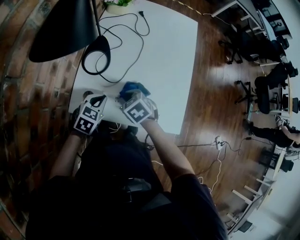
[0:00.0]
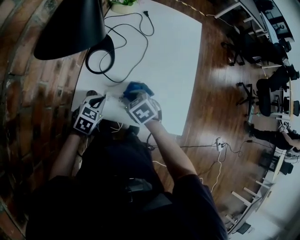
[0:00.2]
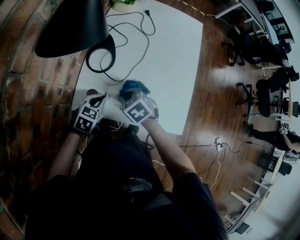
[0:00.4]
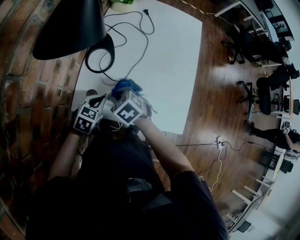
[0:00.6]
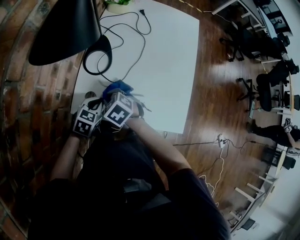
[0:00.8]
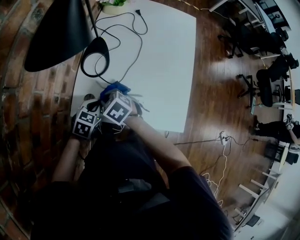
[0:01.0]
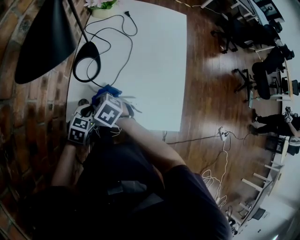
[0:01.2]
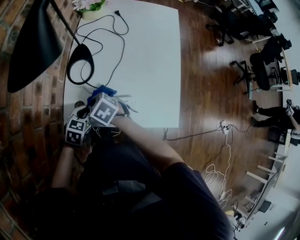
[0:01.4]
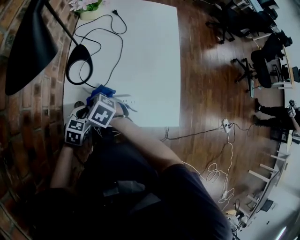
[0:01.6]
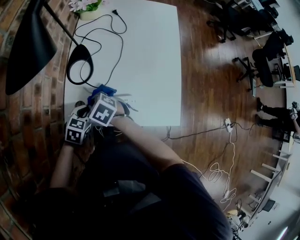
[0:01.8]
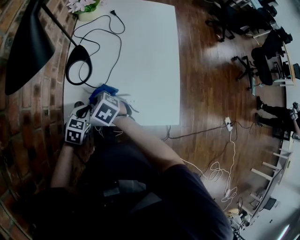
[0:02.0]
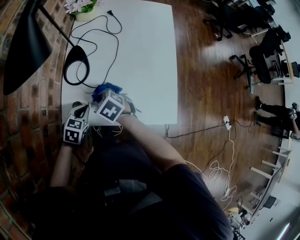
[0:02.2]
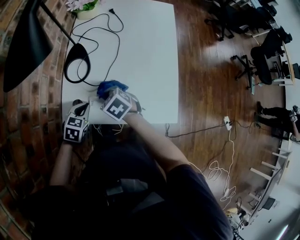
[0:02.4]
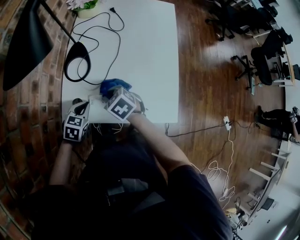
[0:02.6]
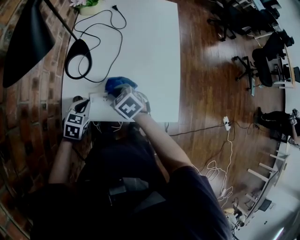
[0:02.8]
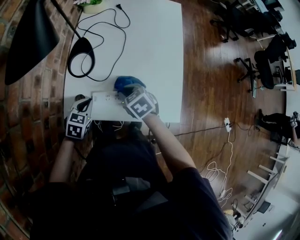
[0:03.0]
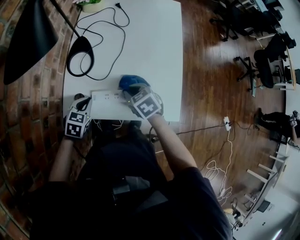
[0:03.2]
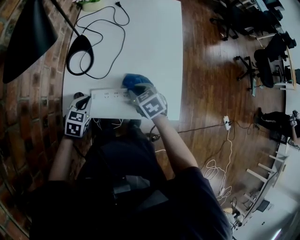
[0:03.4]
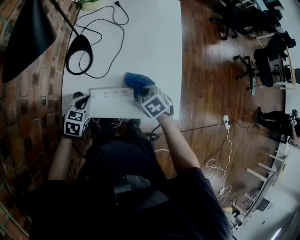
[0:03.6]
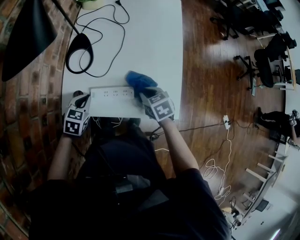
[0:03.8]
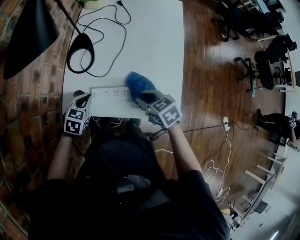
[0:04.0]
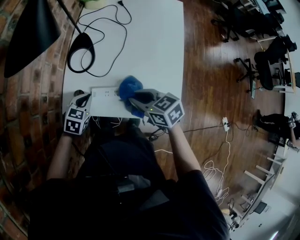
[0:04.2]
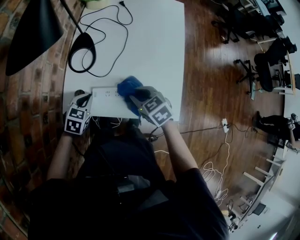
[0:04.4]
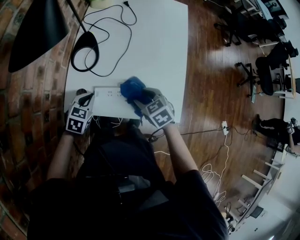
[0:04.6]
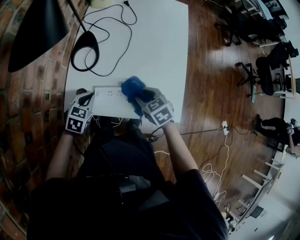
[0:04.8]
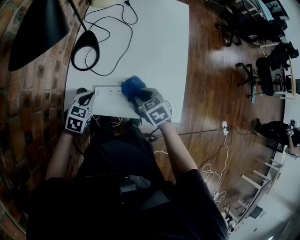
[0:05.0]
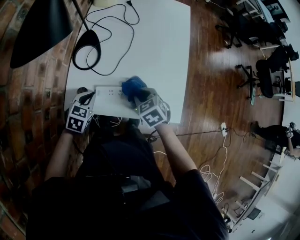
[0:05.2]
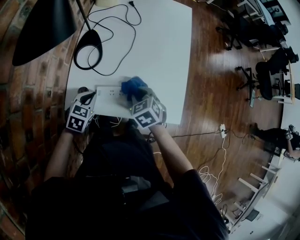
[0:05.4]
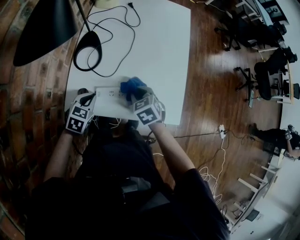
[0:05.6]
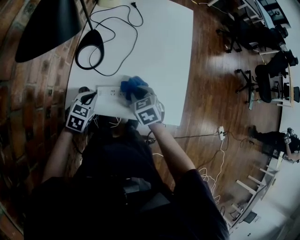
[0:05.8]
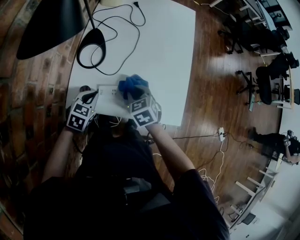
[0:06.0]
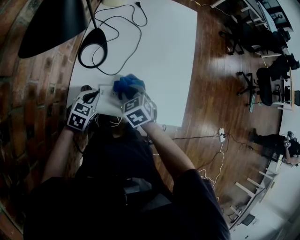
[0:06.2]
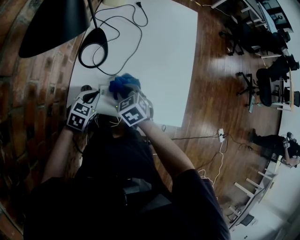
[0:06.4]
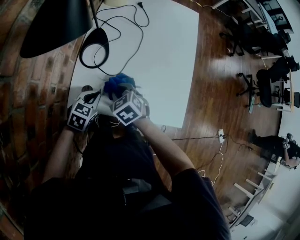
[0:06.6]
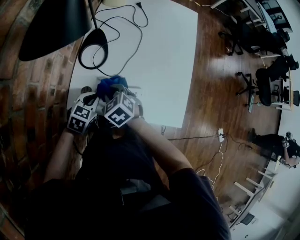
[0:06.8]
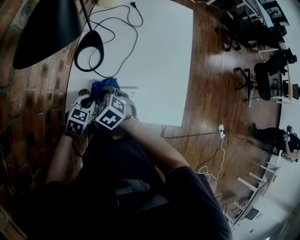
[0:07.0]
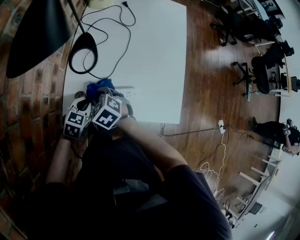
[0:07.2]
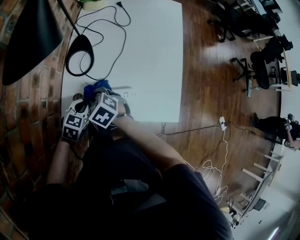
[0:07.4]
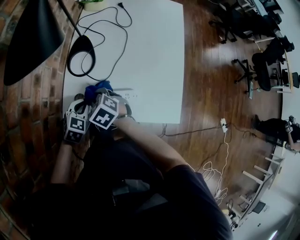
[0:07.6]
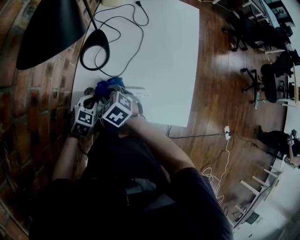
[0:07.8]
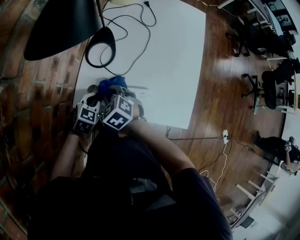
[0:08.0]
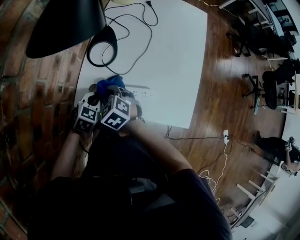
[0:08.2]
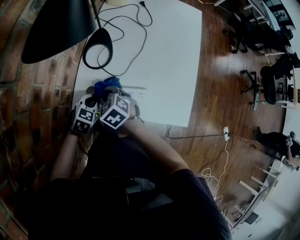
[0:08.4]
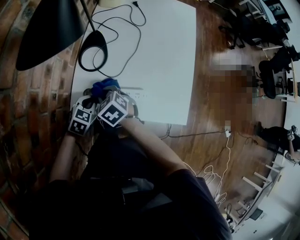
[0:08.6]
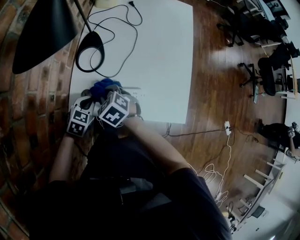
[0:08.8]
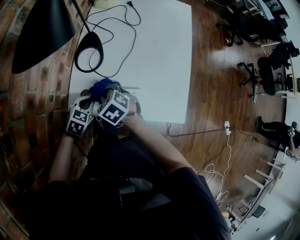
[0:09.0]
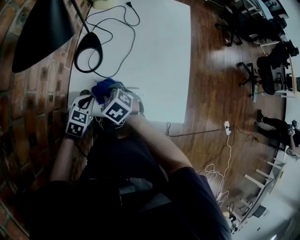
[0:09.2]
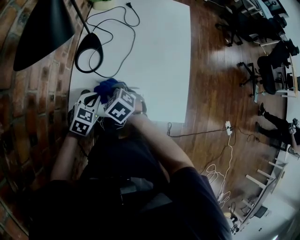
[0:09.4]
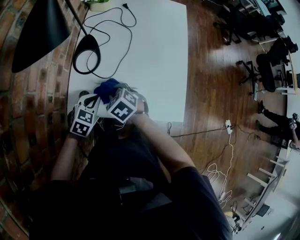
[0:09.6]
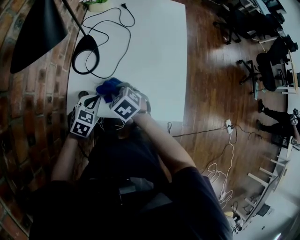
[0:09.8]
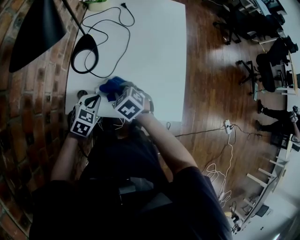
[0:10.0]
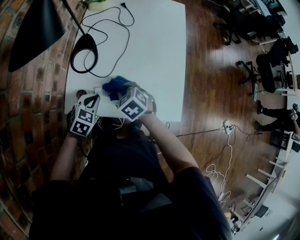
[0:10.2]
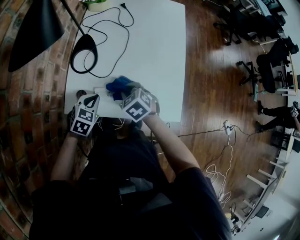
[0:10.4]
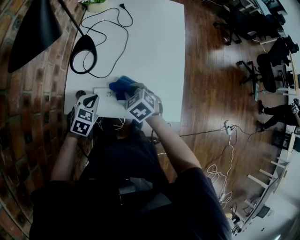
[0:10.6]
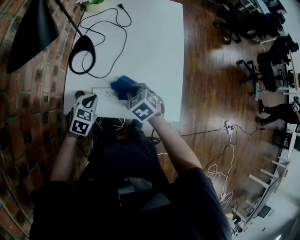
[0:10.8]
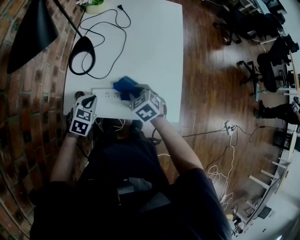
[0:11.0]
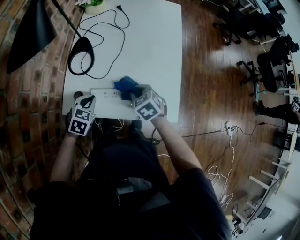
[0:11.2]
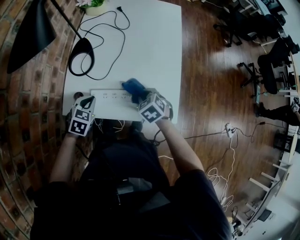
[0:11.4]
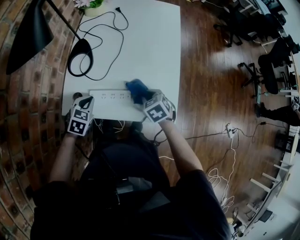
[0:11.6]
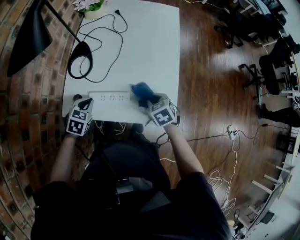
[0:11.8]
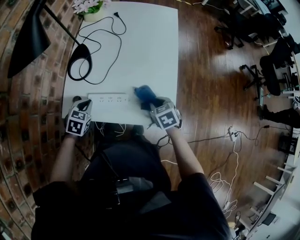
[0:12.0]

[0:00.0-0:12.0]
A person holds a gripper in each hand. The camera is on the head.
0:00.0 to 0:01.6: The right gripper heads to the left, covering some 10 cm.
0:01.6 to 0:03.0: The right gripper is displaced to the right by roughly 15 cm.
0:03.0 to 0:04.4: The right gripper goes upward and returns, roughly 5 cm each way.
0:04.4 to 0:06.0: The right gripper opens, then closes once more.
0:06.0 to 0:07.6: The right gripper heads to the left, covering roughly 15 cm, and turns by roughly 20 degrees.
0:07.6 to 0:09.0: There are only small adjustments of the grippers.
0:09.0 to 0:10.4: The left gripper changes place by some 5 cm; the right gripper heads to the right, covering roughly 10 cm.
0:10.4 to 0:12.0: The right gripper moves to the right, some 15 cm.

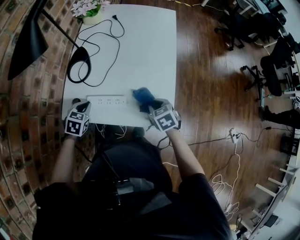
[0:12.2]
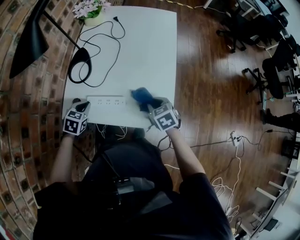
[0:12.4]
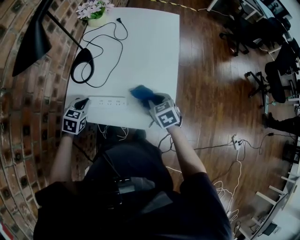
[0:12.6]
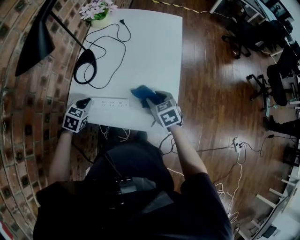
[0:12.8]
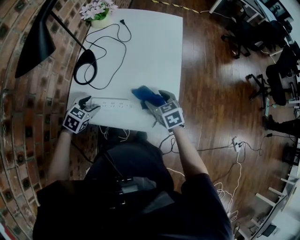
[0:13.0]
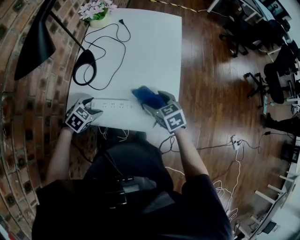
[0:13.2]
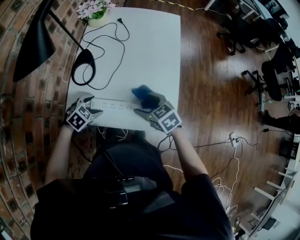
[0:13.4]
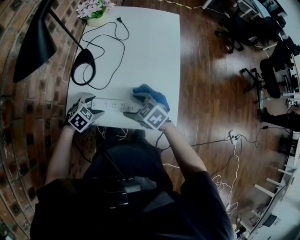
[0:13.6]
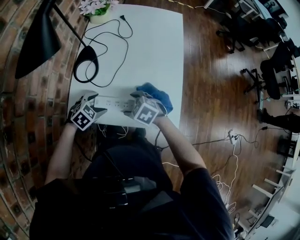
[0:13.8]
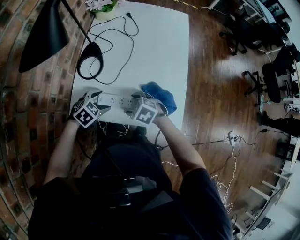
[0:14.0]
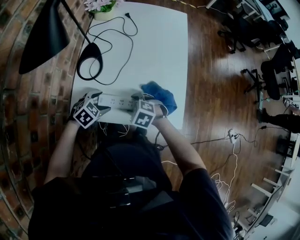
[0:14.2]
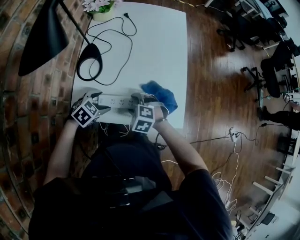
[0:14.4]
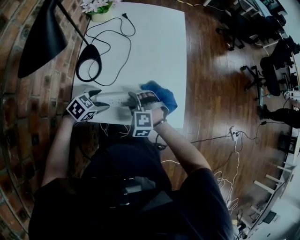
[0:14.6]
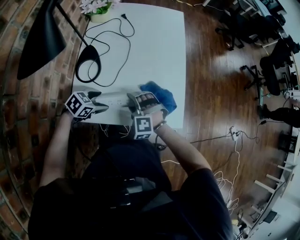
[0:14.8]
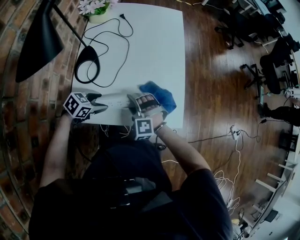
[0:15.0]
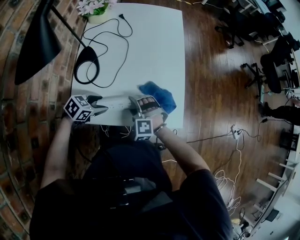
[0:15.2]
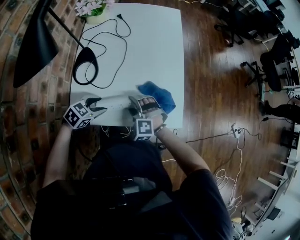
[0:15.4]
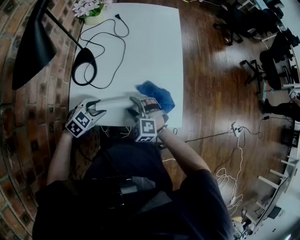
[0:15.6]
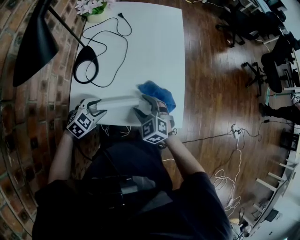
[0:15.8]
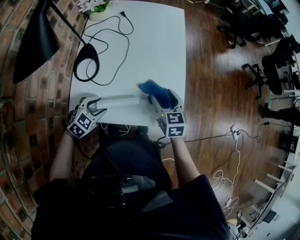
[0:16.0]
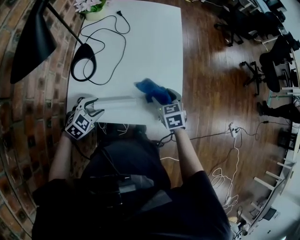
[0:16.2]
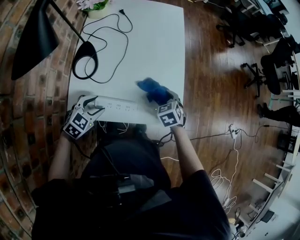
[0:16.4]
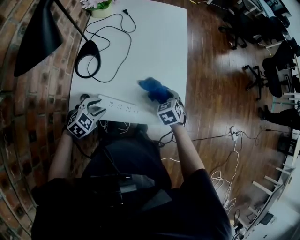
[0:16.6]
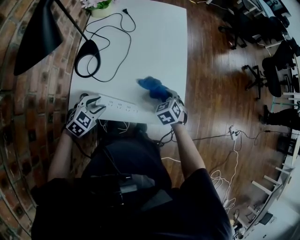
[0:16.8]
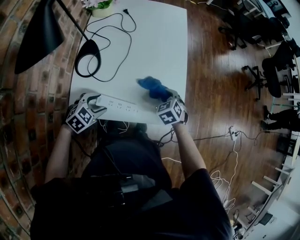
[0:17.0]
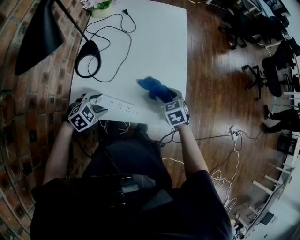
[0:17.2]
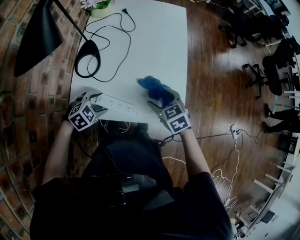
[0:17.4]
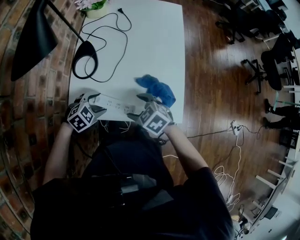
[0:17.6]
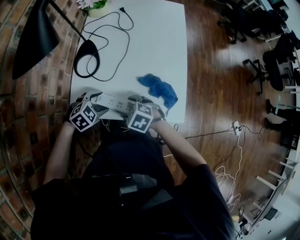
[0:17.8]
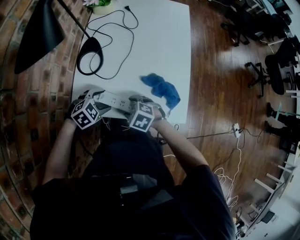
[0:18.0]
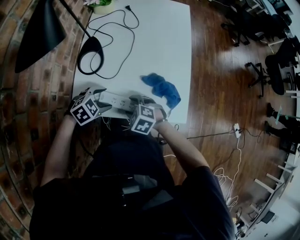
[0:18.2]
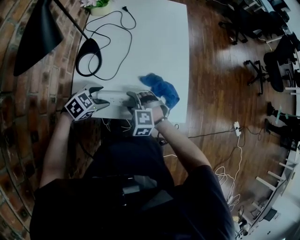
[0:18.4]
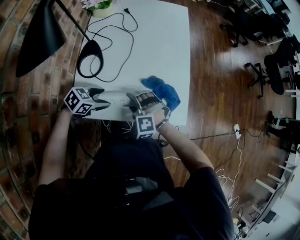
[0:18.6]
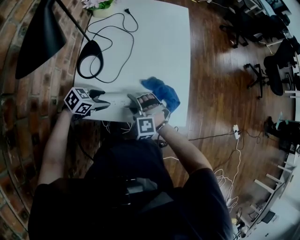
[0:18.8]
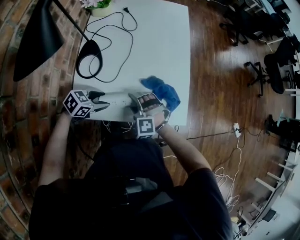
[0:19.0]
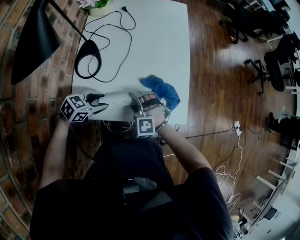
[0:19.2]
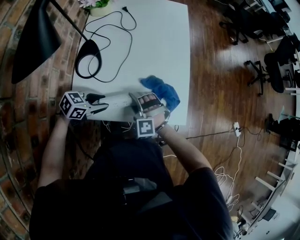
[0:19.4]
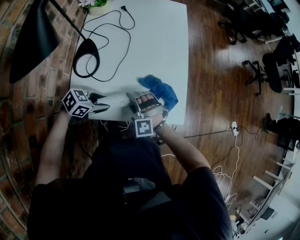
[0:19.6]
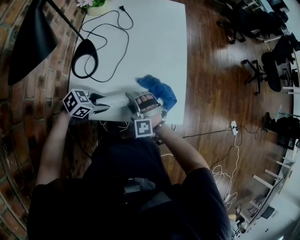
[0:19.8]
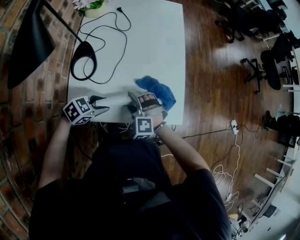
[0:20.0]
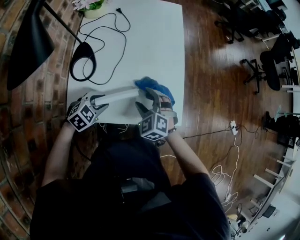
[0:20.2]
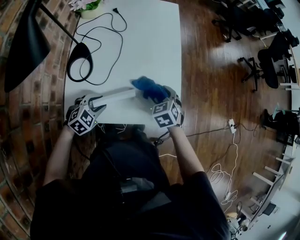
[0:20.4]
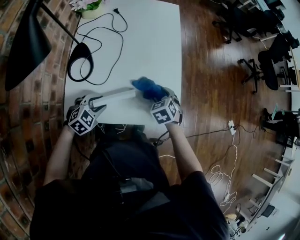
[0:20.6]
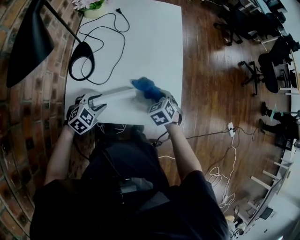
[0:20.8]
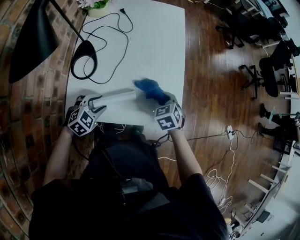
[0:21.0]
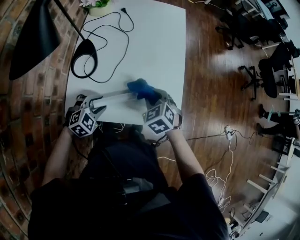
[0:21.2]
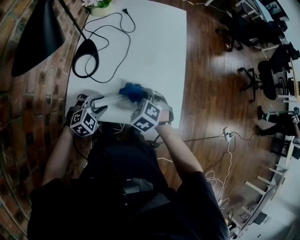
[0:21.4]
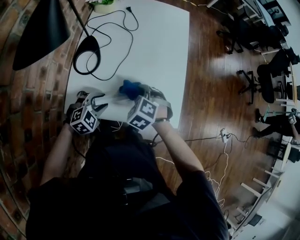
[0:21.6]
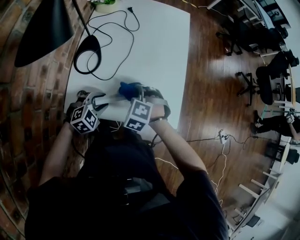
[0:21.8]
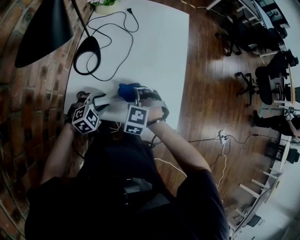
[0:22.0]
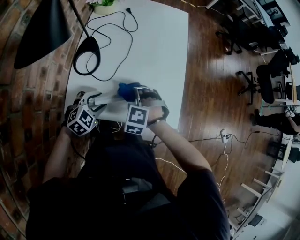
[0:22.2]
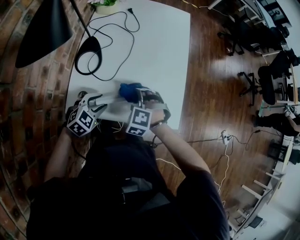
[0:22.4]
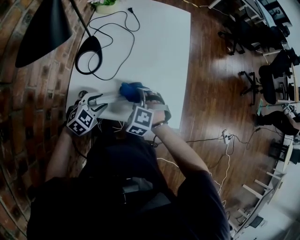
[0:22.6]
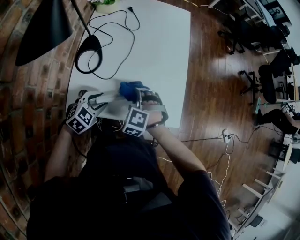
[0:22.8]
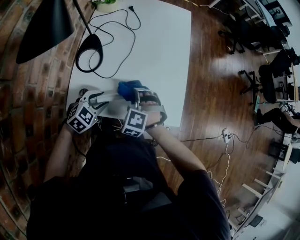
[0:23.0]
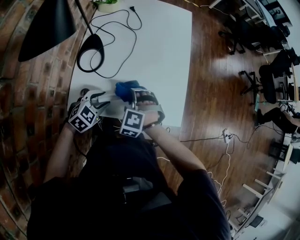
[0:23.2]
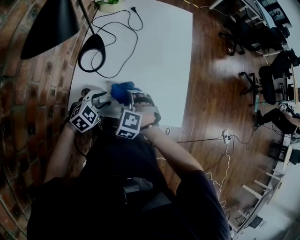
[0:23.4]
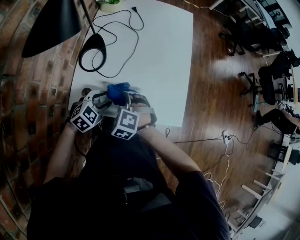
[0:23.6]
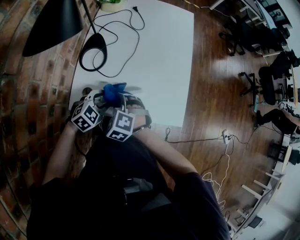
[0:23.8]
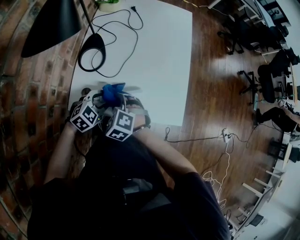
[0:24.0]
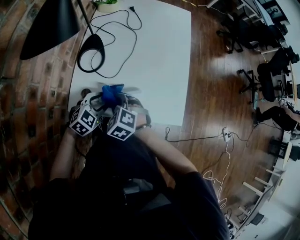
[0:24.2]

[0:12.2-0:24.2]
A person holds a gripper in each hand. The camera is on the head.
0:12.2 to 0:13.8: The right gripper is displaced to the left by roughly 15 cm, changes its angle by approximately 30 degrees, and opens; the left gripper changes its angle by roughly 30 degrees, and opens up.
0:13.8 to 0:15.2: The left gripper turns by roughly 20 degrees. The right gripper changes its angle by roughly 50 degrees.
0:15.2 to 0:16.6: The left gripper changes its angle by roughly 20 degrees; the right gripper is displaced to the right and forward by some 15 cm, and rolls clockwise, seen from behind, by some 60 degrees.
0:16.6 to 0:18.2: The right gripper reaches approximately 5 cm upward, then returns, rotates approximately 40 degrees, and closes, then opens again.
0:18.2 to 0:19.8: The right gripper changes place by some 5 cm, and changes its angle by approximately 40 degrees. The left gripper turns by some 30 degrees, and closes.
0:19.8 to 0:21.2: The right gripper moves to the right, forward and upward, some 15 cm, twists about 50 degrees clockwise, seen from behind, and closes its fingers; the left gripper turns by about 40 degrees.
0:21.2 to 0:22.6: The right gripper moves to the left, roughly 5 cm, and turns by some 30 degrees.
0:22.6 to 0:24.2: The right gripper travels to the left and backward by about 10 cm, and changes its angle by some 20 degrees.
